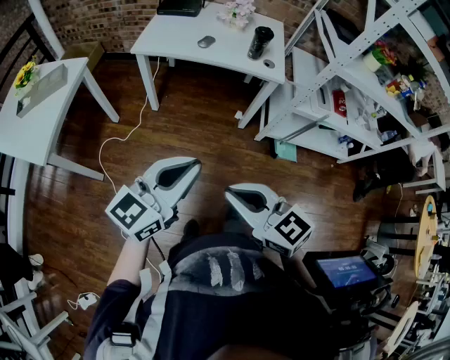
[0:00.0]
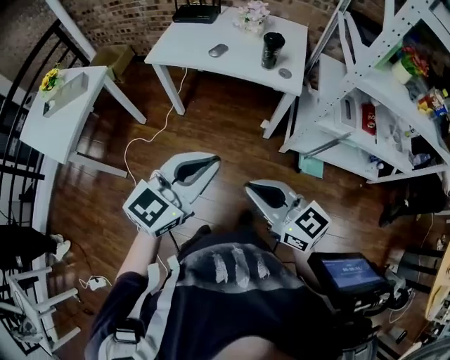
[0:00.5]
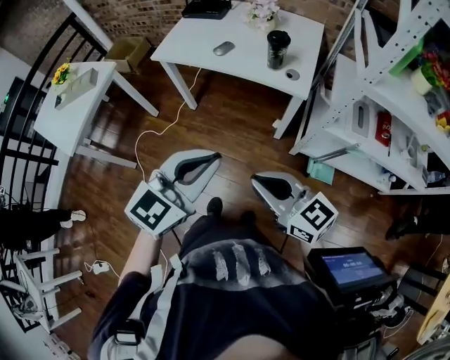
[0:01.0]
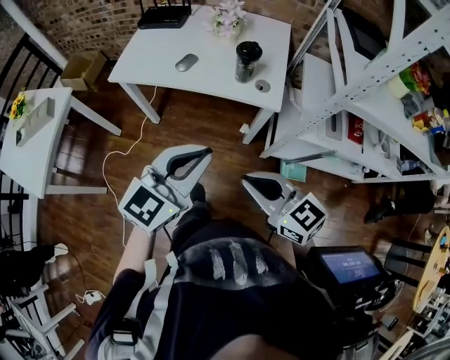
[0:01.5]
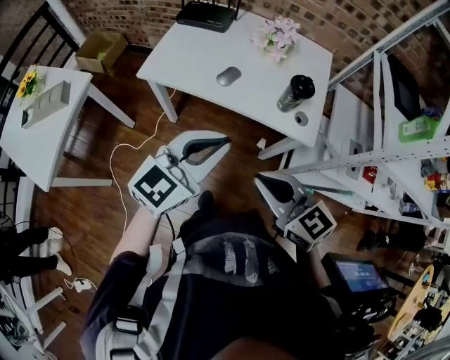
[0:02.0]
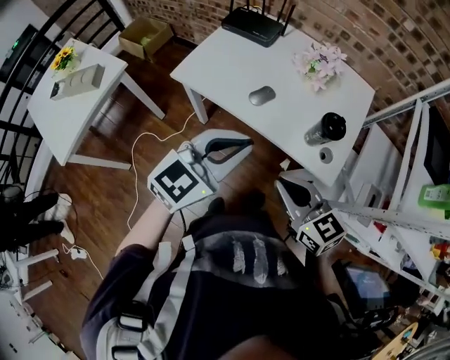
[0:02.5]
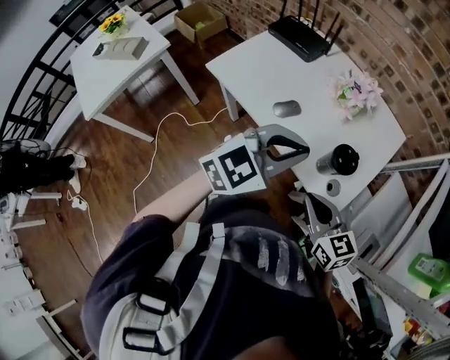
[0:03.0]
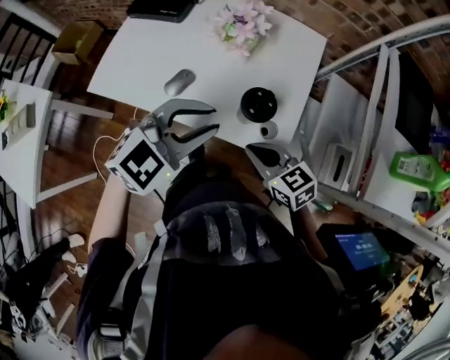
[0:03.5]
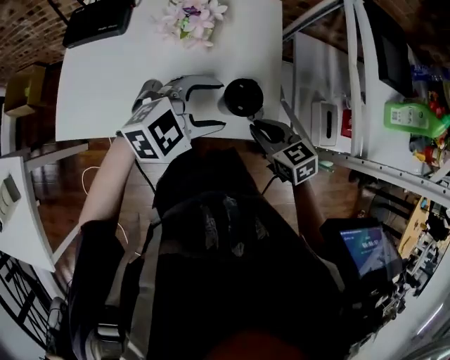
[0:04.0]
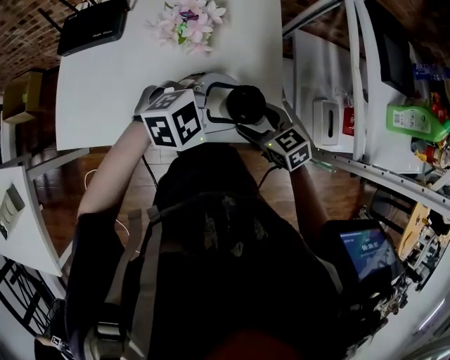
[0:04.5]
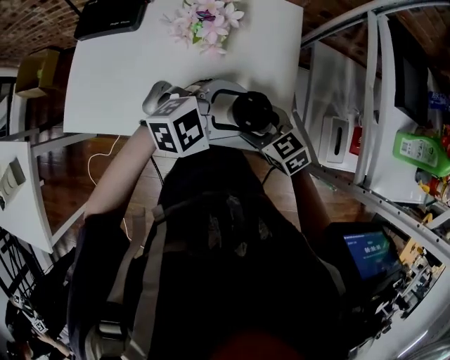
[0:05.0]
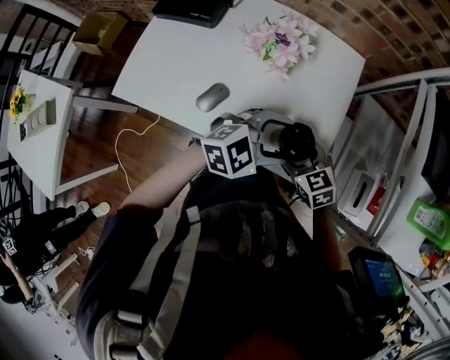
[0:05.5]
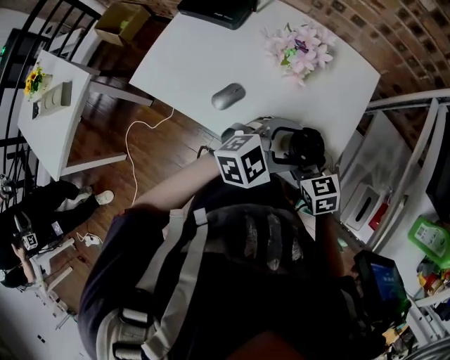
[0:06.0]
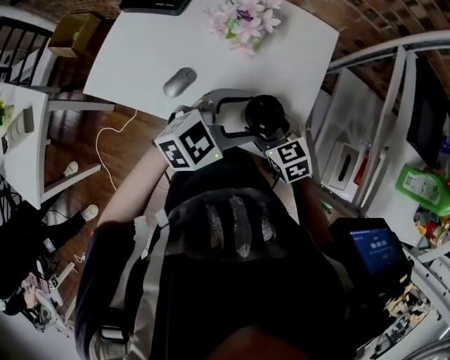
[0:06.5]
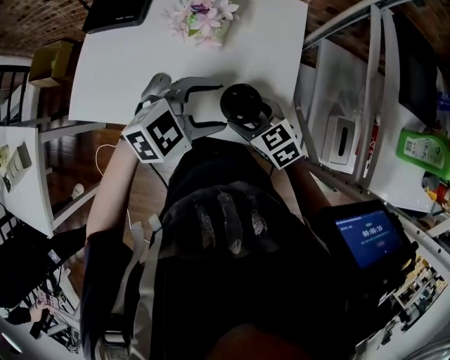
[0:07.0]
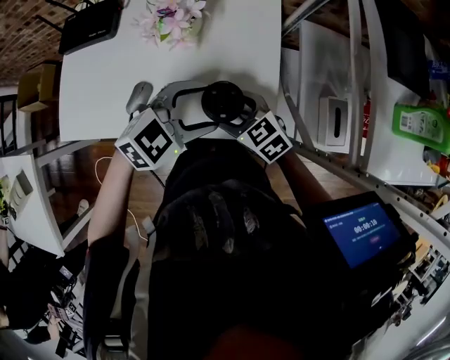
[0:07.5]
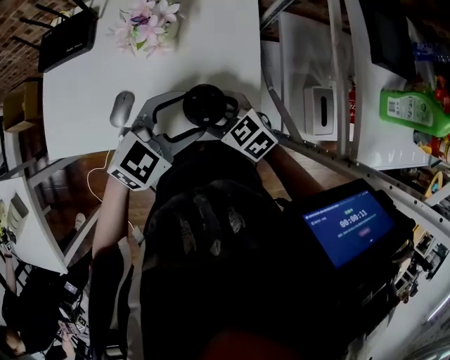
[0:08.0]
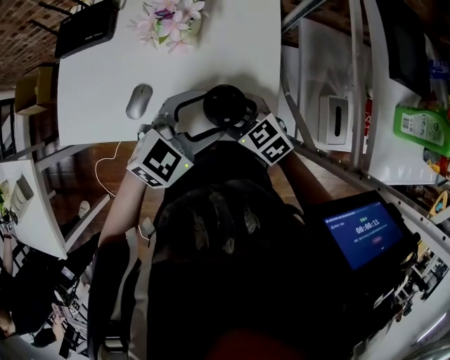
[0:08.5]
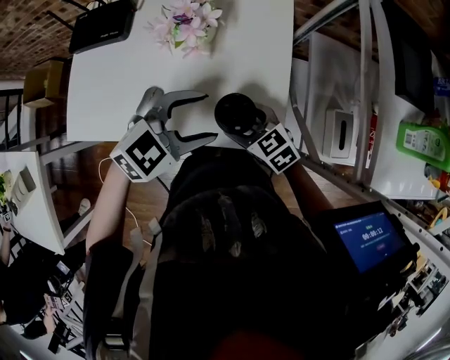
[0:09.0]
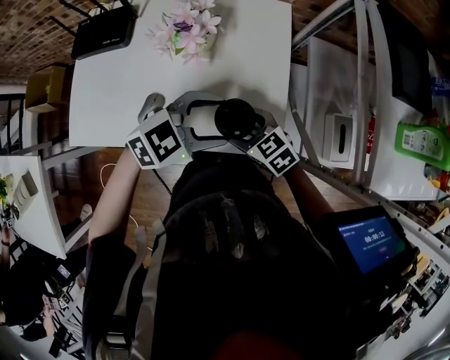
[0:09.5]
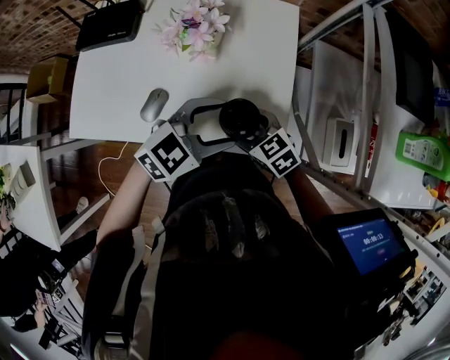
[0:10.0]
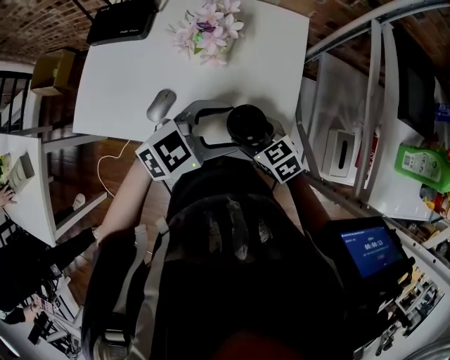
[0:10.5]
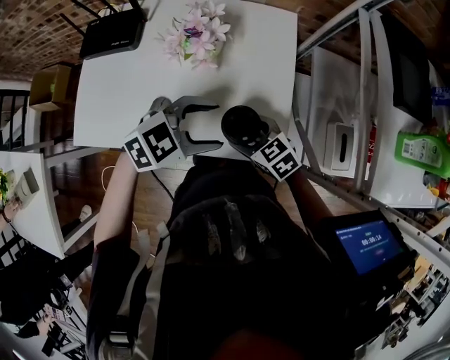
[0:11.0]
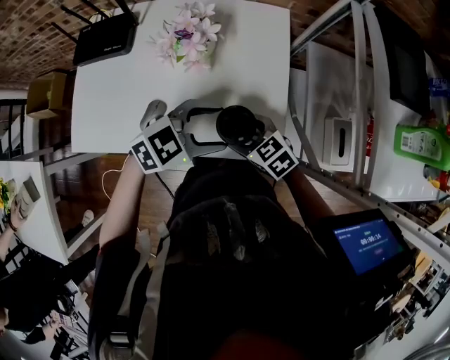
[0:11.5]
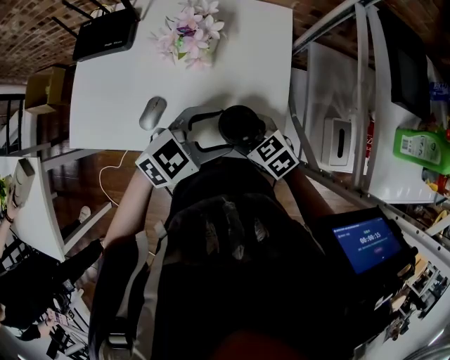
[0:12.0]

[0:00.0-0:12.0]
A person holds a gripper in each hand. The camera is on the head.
0:00.0 to 0:02.0: Both grippers move forward, approximately 35 cm.
0:02.0 to 0:04.0: The right gripper shifts by about 35 cm, and changes its angle by roughly 30 degrees, while the left gripper moves roughly 30 cm, swivels approximately 50 degrees, and opens its fingers.
0:04.0 to 0:06.0: The right gripper moves some 5 cm, and opens its fingers, while the left gripper shifts by roughly 5 cm, and rotates roughly 20 degrees.
0:06.0 to 0:08.0: There are only small adjustments of the grippers.
0:08.0 to 0:12.0: The grippers make only small movements.

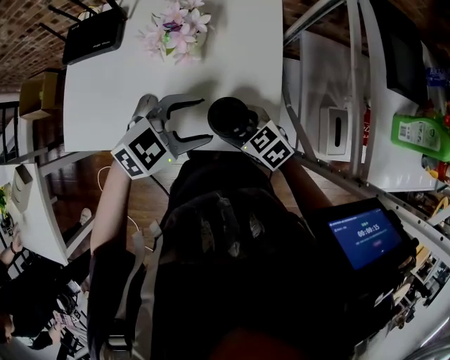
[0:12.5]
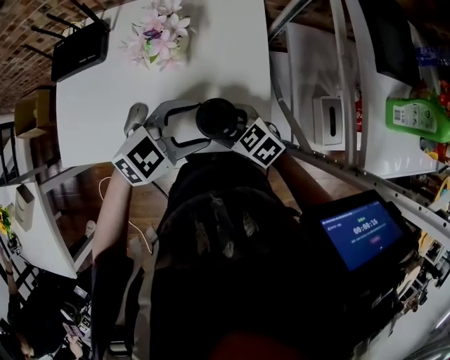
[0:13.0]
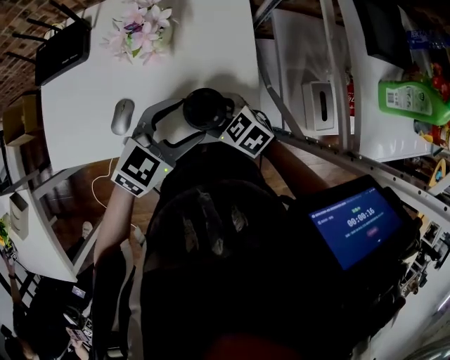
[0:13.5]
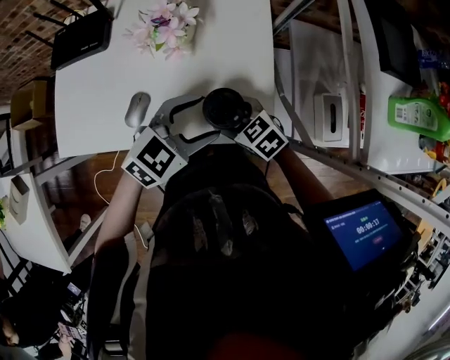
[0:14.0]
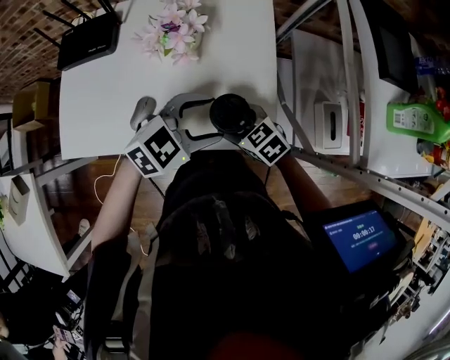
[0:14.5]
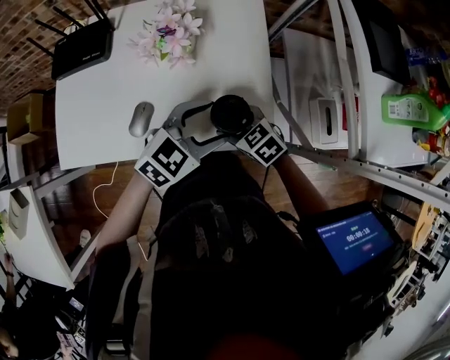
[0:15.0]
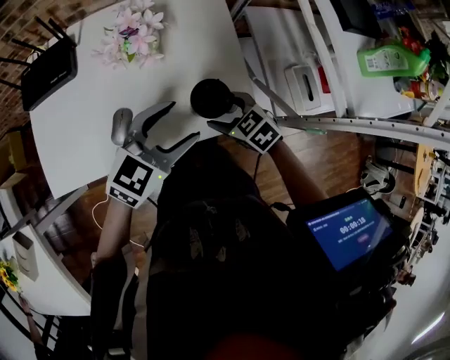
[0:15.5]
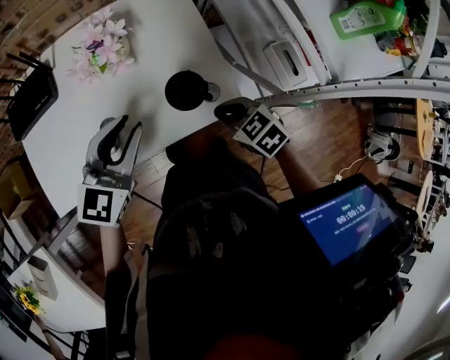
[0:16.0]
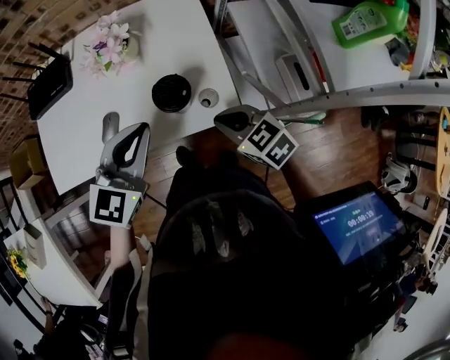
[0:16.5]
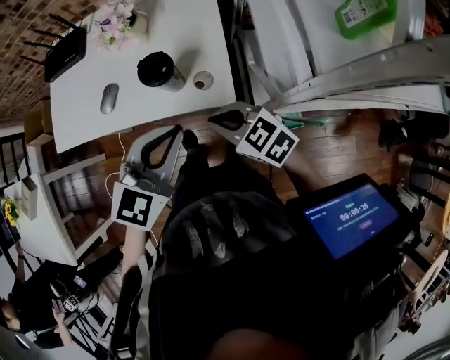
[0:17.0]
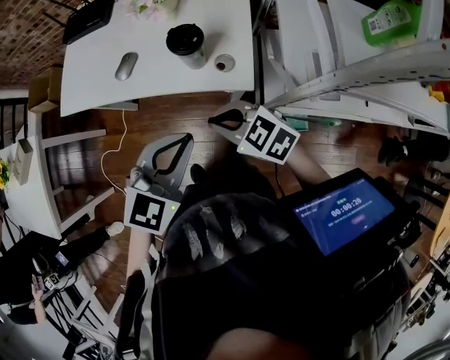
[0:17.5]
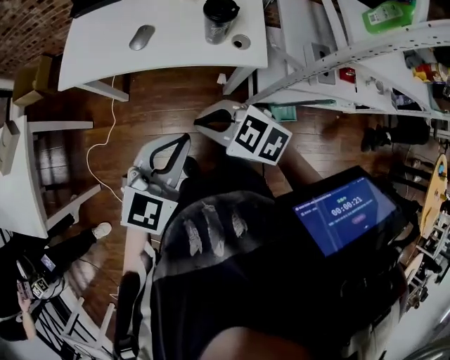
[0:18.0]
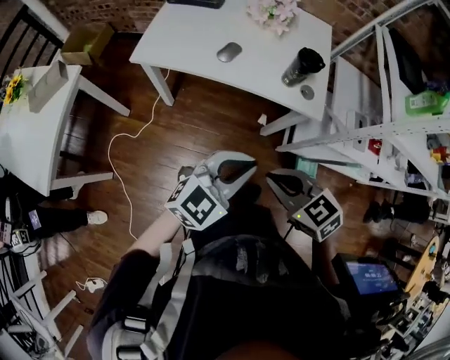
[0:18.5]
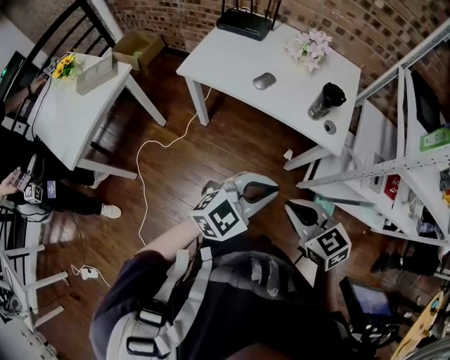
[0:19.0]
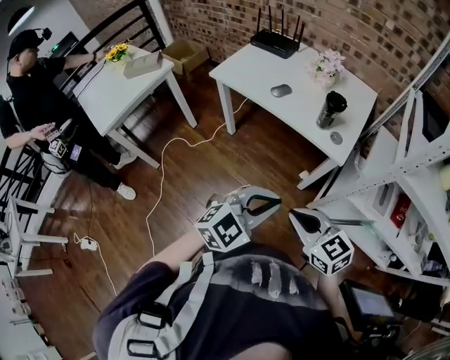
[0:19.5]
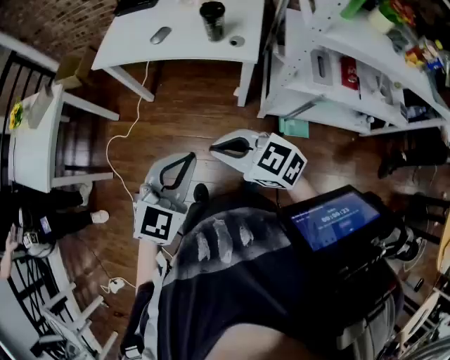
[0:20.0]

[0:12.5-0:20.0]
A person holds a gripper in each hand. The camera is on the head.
0:12.5 to 0:14.5: There are only small adjustments of the grippers.
0:14.5 to 0:16.5: The left gripper is displaced upward by about 10 cm, turns by roughly 30 degrees, and closes up. The right gripper changes place by roughly 15 cm, and closes its fingers.
0:16.5 to 0:18.0: The right gripper goes some 25 cm to the left and backward, and swivels about 30 degrees; the left gripper goes roughly 25 cm backward.
0:18.0 to 0:20.0: Both grippers move backward, about 20 cm.

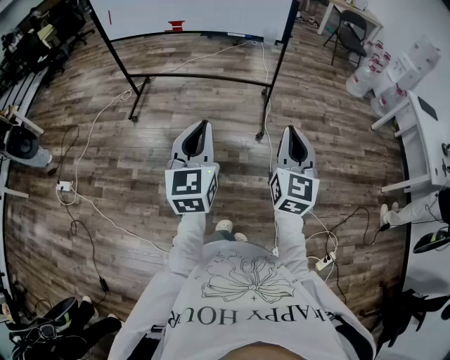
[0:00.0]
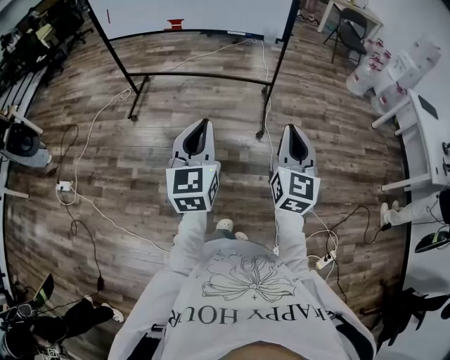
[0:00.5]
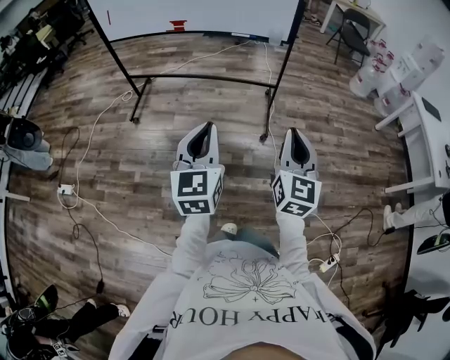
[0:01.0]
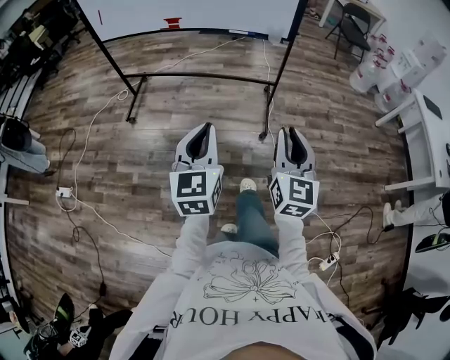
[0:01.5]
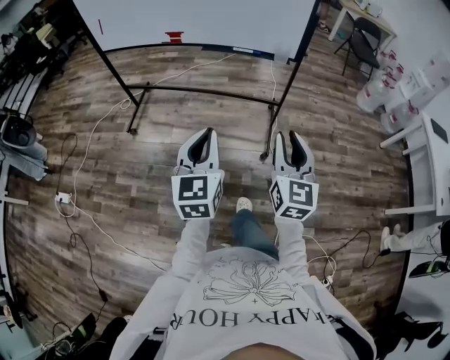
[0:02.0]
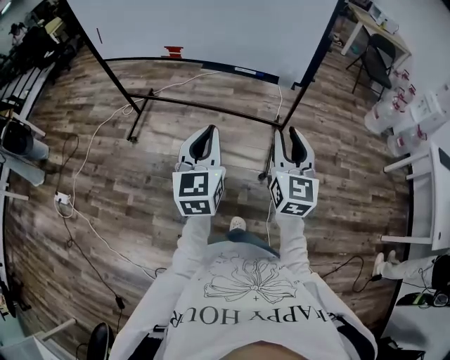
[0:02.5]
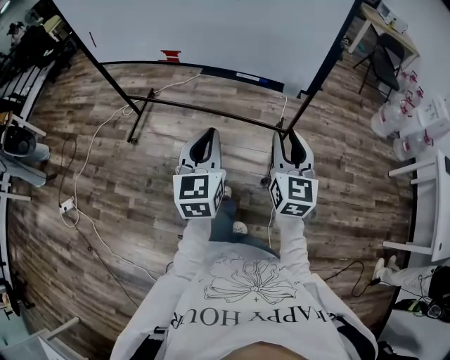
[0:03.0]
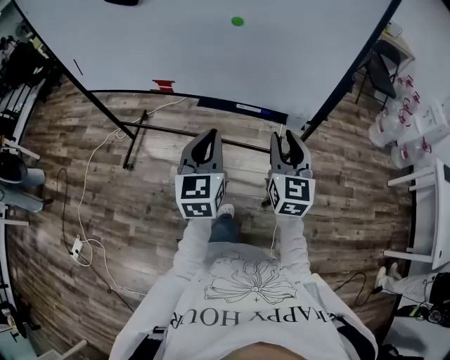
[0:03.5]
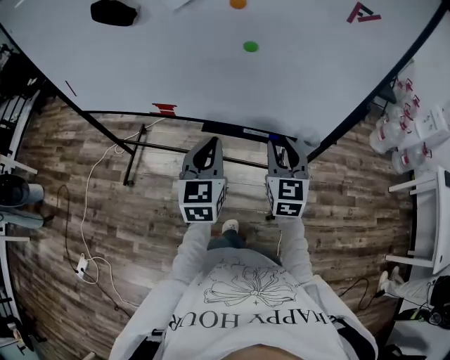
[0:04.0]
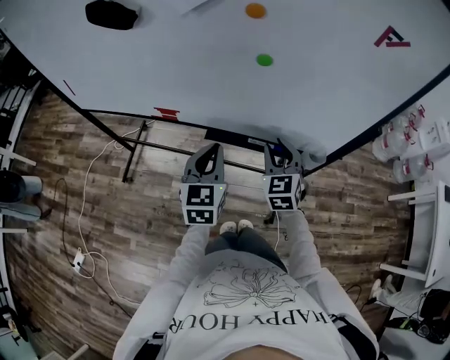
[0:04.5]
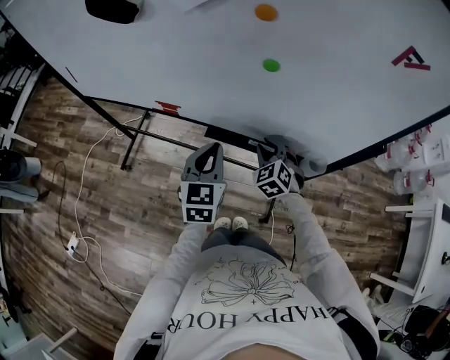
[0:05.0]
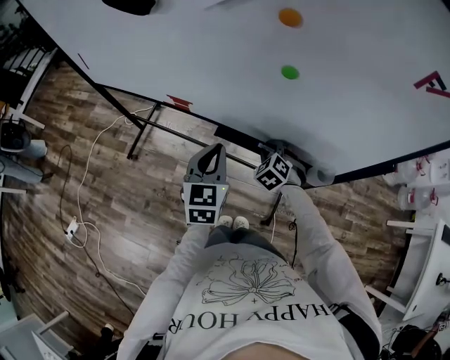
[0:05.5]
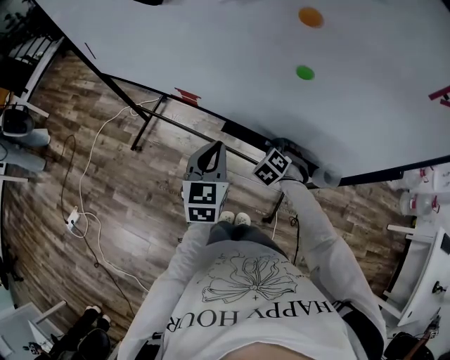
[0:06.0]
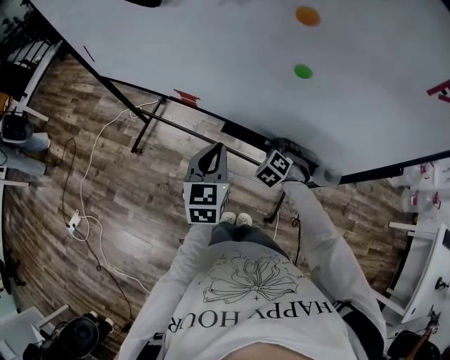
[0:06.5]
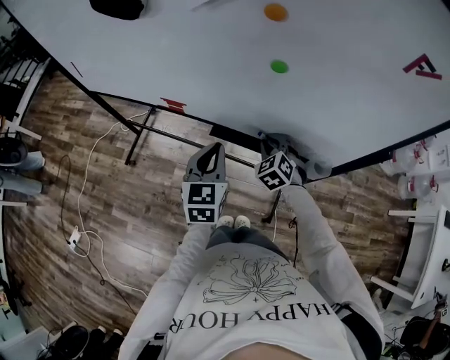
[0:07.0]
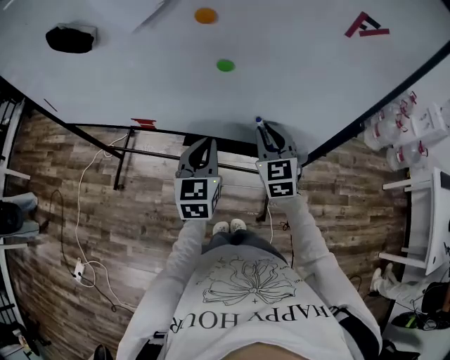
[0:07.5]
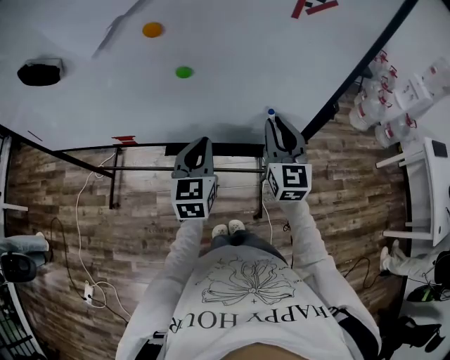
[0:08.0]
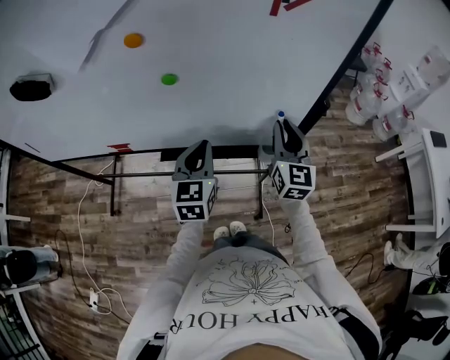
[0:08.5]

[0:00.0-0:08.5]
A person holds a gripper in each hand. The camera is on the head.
0:00.0 to 0:02.0: The grippers both shift forward by about 20 cm. The right gripper opens.
0:02.0 to 0:04.0: Both grippers are carried forward, approximately 50 cm.
0:04.0 to 0:06.5: The left gripper goes about 10 cm downward and forward. The right gripper heads downward and forward, covering about 25 cm, and points its fingers roughly 40 degrees further downward.
0:06.5 to 0:08.5: The right gripper travels upward and to the right by roughly 35 cm, and tilts its fingers some 50 degrees upward, while the left gripper shifts some 15 cm to the right, and changes its angle by some 20 degrees.
